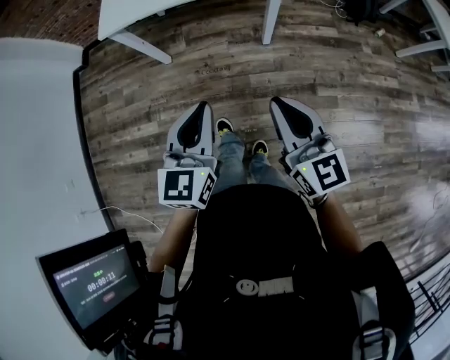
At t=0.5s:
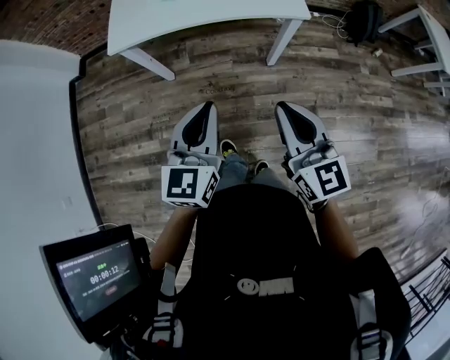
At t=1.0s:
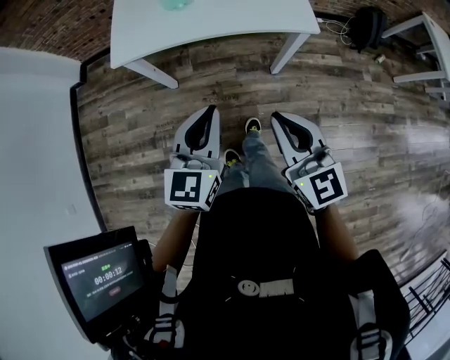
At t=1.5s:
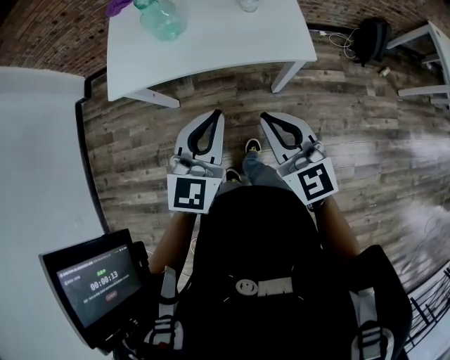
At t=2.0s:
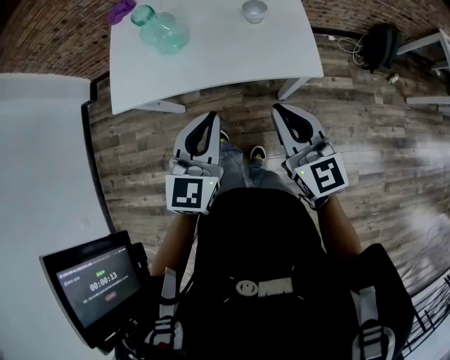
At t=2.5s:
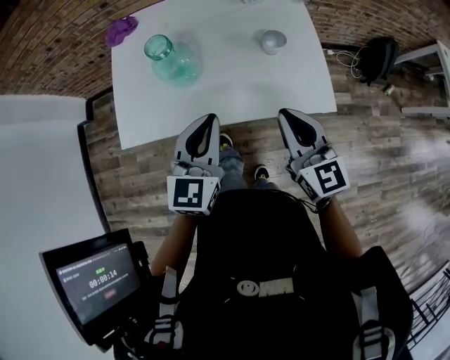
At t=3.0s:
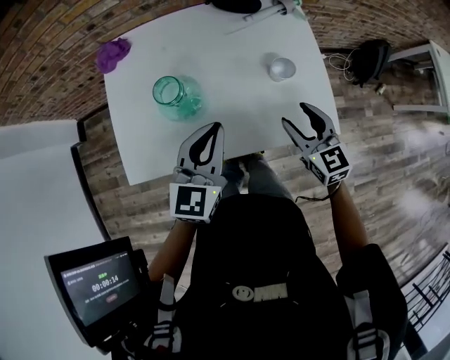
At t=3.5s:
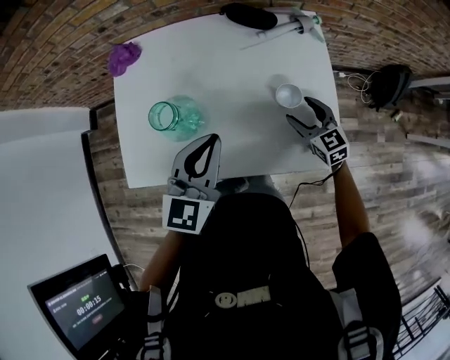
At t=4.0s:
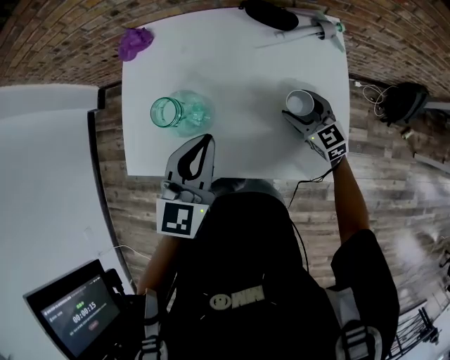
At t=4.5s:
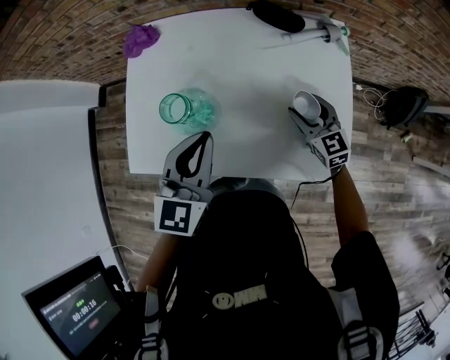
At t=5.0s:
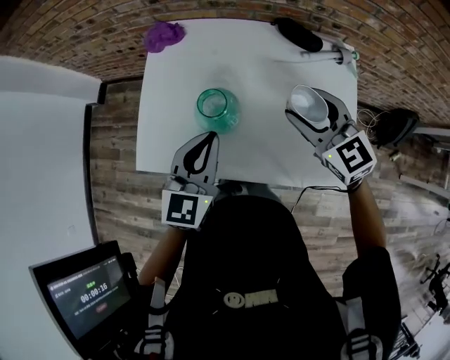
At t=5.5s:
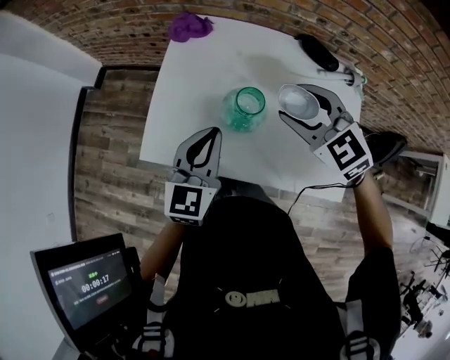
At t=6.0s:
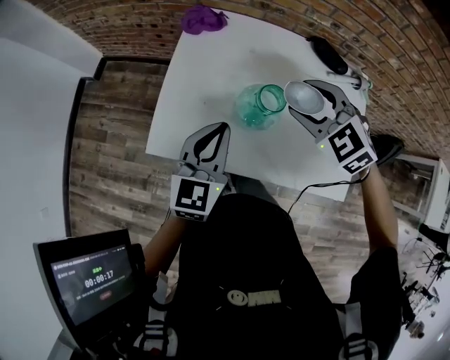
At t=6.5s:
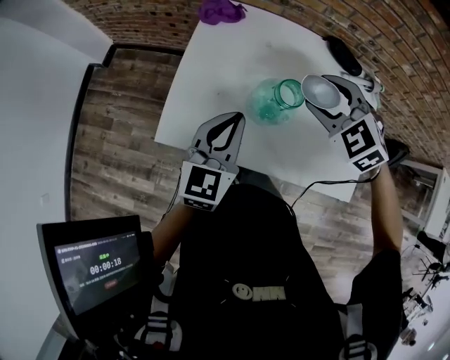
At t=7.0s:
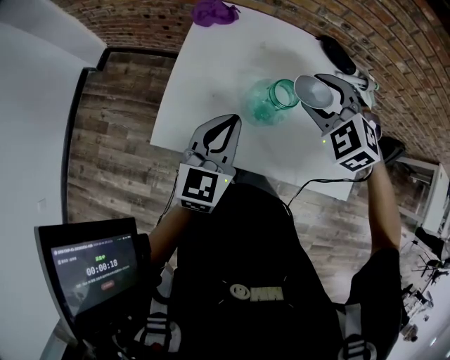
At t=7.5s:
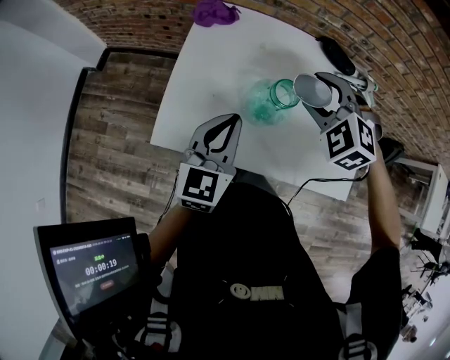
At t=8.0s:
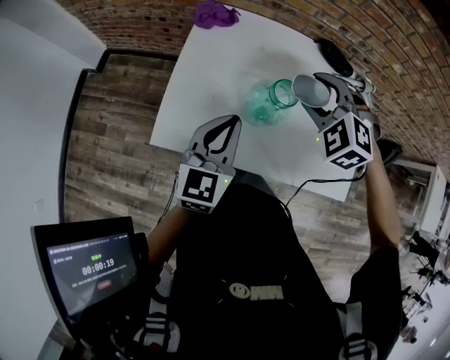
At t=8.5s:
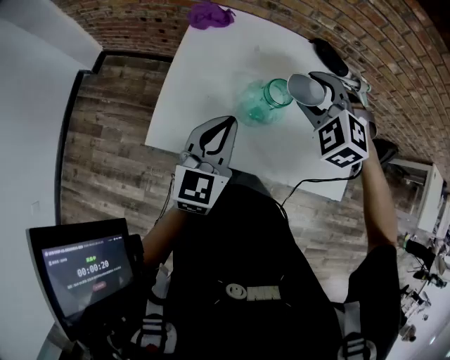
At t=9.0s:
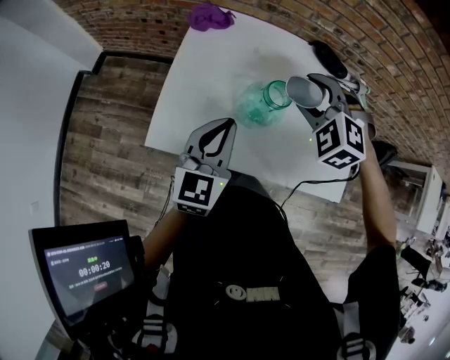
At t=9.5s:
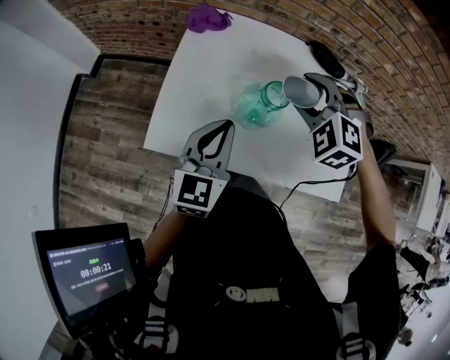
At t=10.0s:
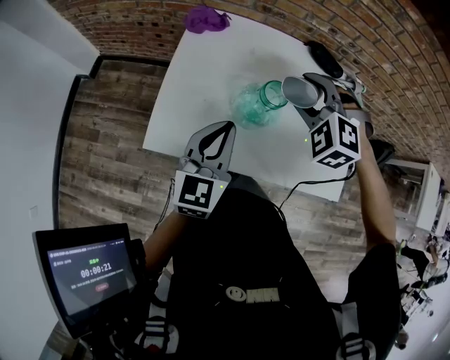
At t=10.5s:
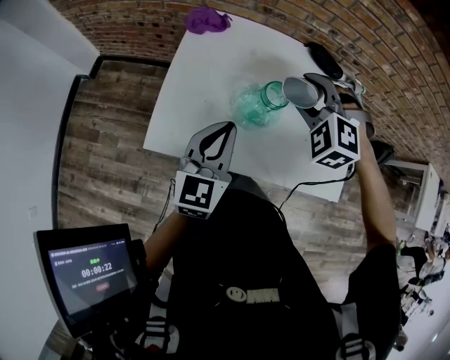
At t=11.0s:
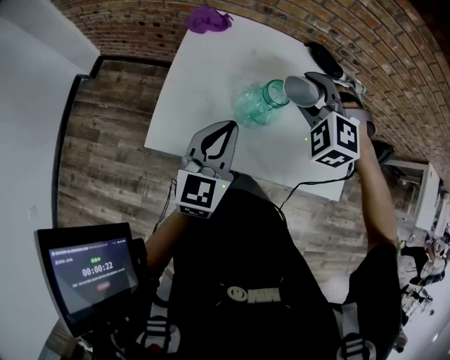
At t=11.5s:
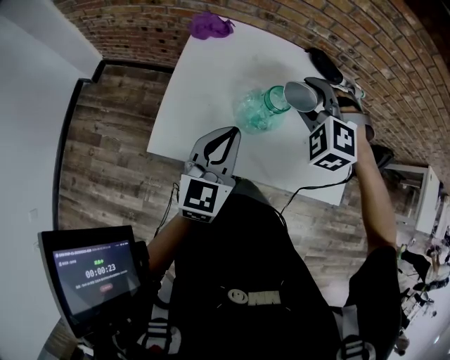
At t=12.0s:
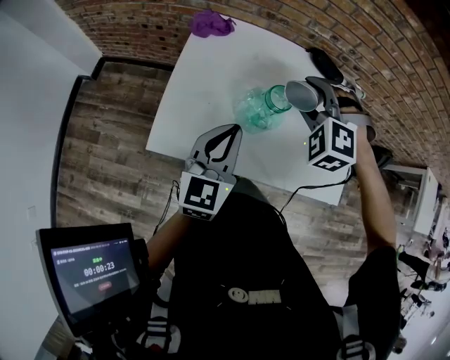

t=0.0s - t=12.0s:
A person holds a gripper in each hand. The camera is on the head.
t=0.0s - t=2.0s: The two grippers go about 35 cm forward.
t=2.0s - t=4.0s: The left gripper goes roughly 30 cm forward, while the right gripper travels forward and downward by about 40 cm, turns by about 30 degrees, and opens up.
t=4.0s - t=6.0s: The right gripper heads to the left and upward, covering roughly 30 cm, and turns by approximately 40 degrees, while the left gripper is displaced to the left by approximately 15 cm.
t=6.0s - t=8.0s: The right gripper rotates about 20 degrees.
t=8.0s - t=12.0s: The grippers make only small movements.

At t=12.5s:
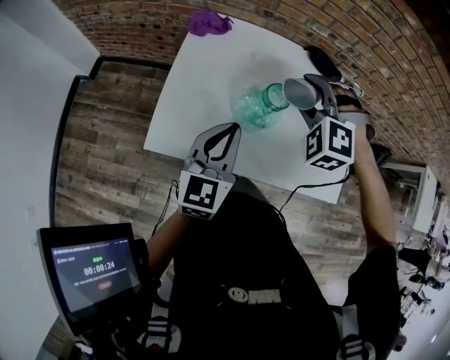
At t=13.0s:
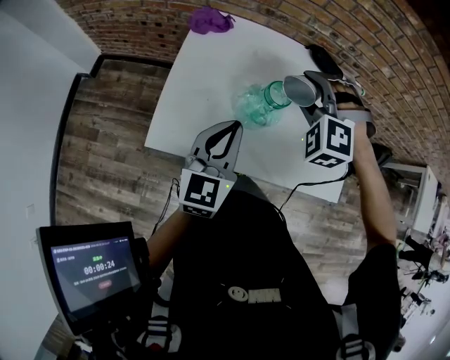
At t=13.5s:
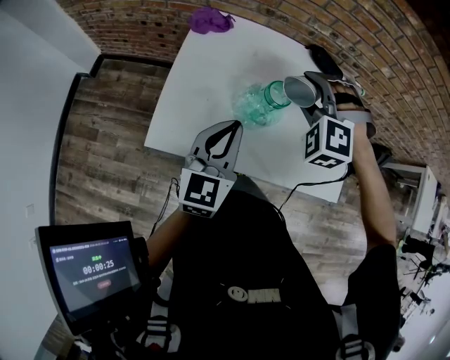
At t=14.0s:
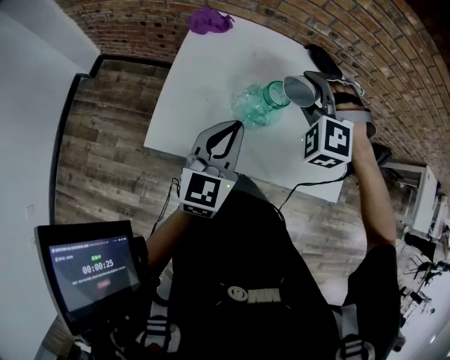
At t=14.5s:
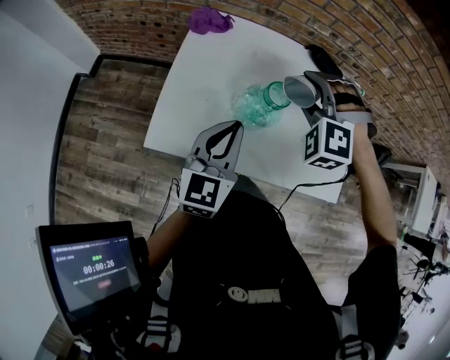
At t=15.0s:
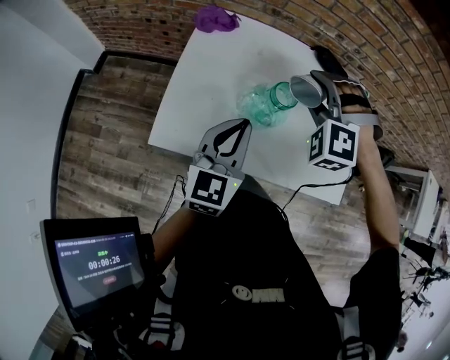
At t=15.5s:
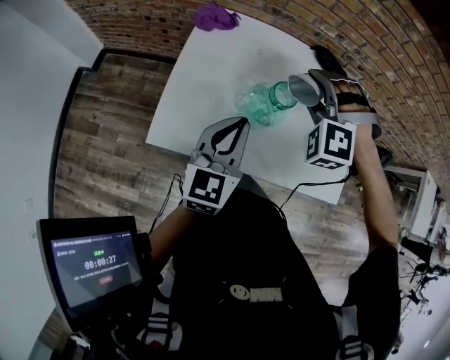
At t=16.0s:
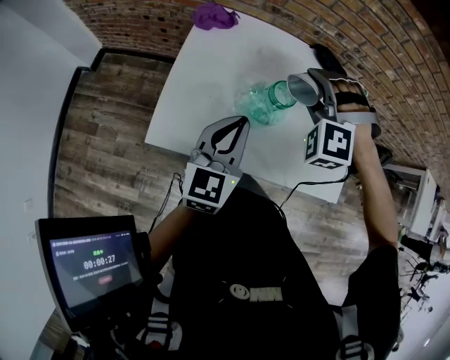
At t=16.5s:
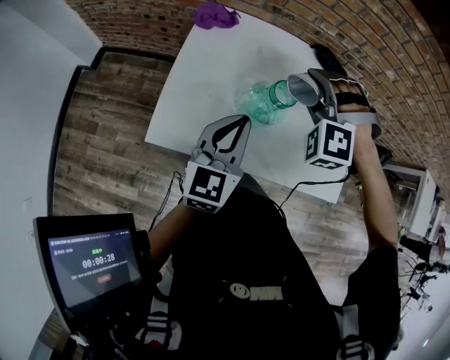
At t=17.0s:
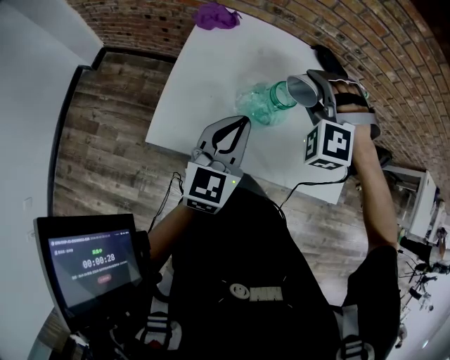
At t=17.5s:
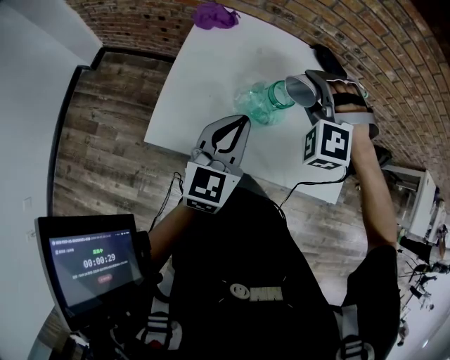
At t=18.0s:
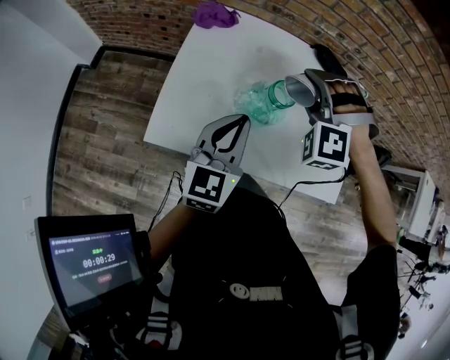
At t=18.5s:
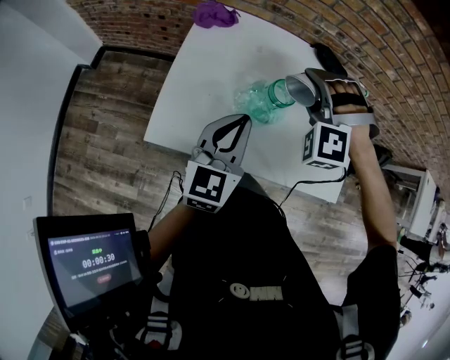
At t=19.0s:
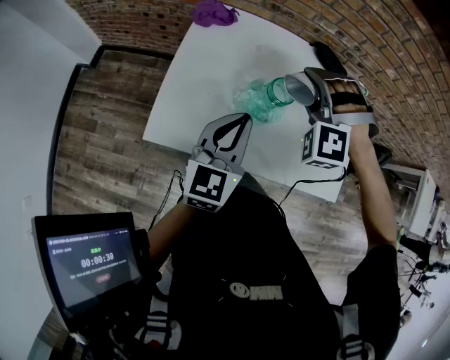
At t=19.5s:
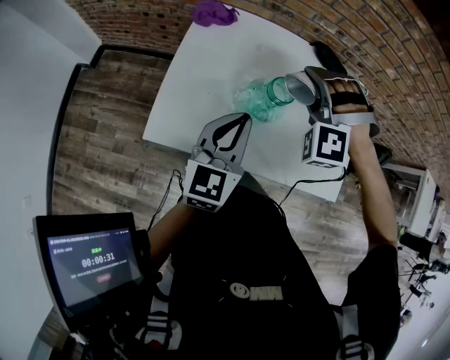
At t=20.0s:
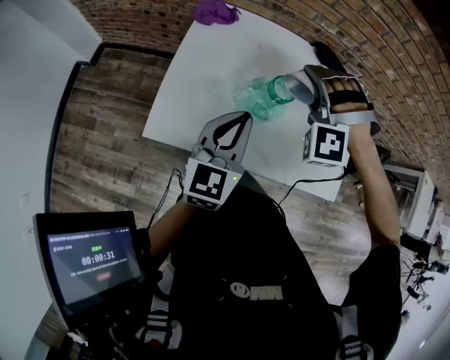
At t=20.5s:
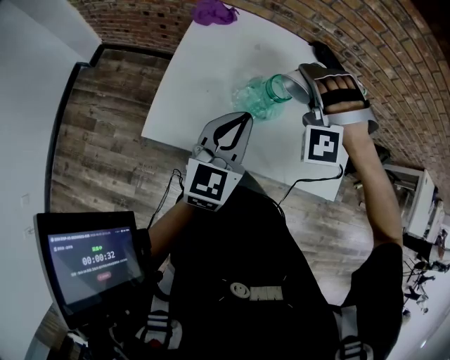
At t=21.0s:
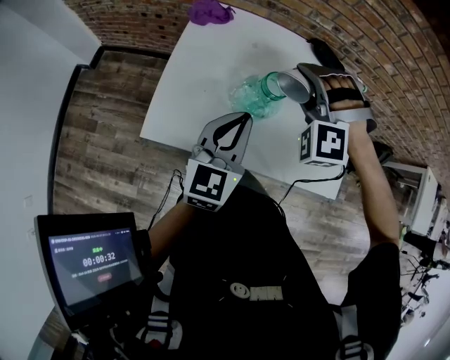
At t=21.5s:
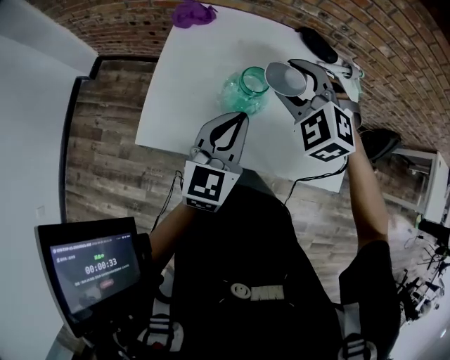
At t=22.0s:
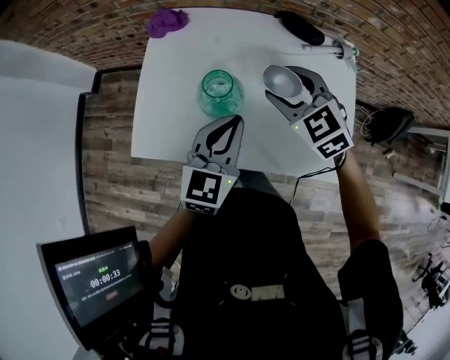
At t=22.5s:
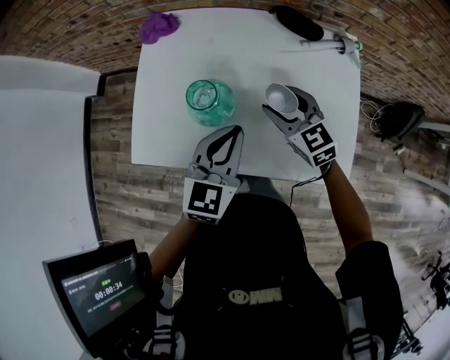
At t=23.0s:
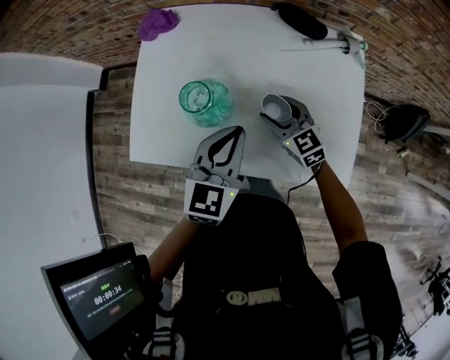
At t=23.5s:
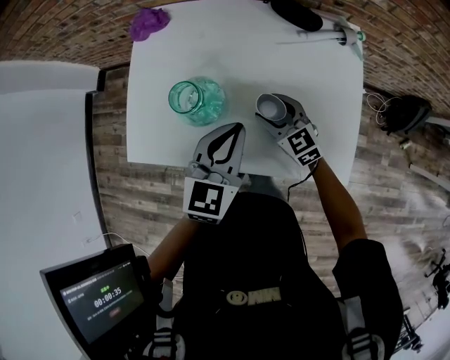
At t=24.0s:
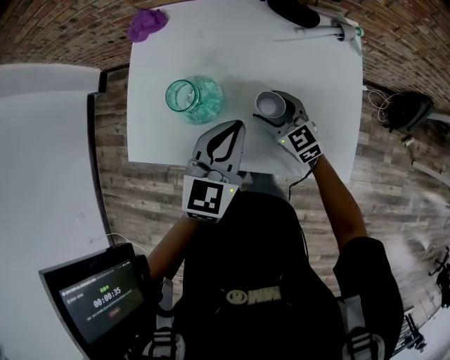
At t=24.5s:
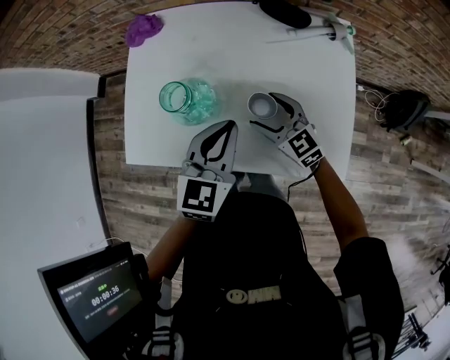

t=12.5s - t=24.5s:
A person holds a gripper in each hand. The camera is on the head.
t=12.5s - t=16.5s: The grippers move only a little.
t=16.5s - t=18.5s: Neither gripper changes place.
t=18.5s - t=20.5s: The grippers make only small movements.
t=20.5s - t=22.5s: The right gripper shifts roughly 15 cm to the right and downward, and twists some 90 degrees clockwise, seen from behind. Meanwhile the left gripper is displaced to the right by some 15 cm.
t=22.5s - t=24.5s: The right gripper heads downward, covering roughly 5 cm.

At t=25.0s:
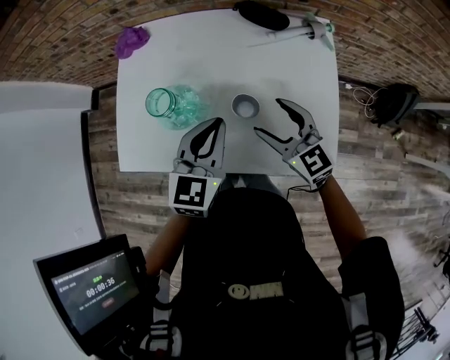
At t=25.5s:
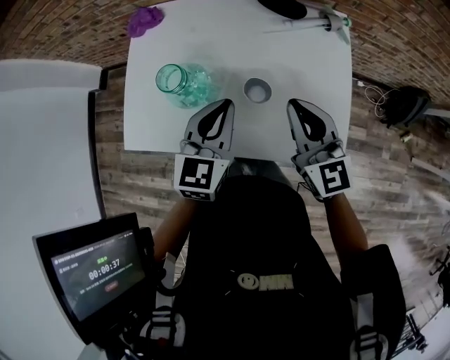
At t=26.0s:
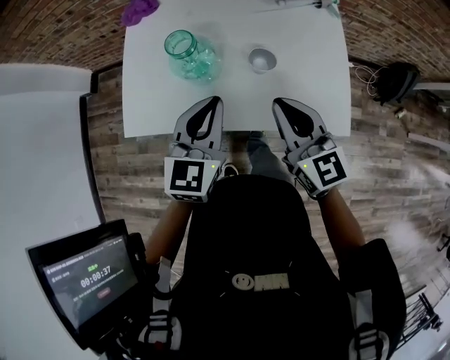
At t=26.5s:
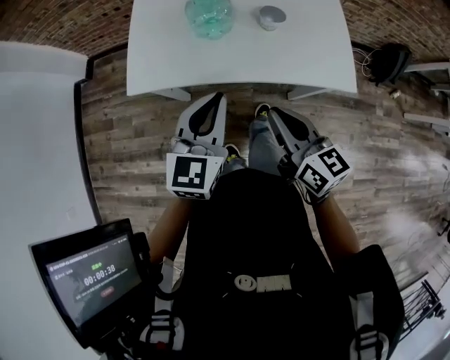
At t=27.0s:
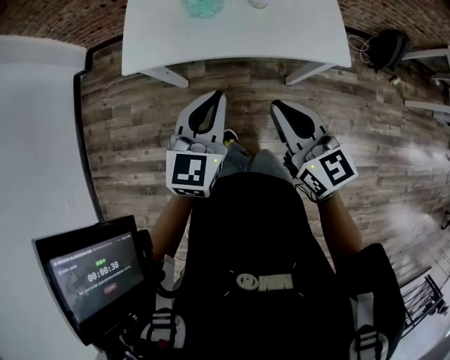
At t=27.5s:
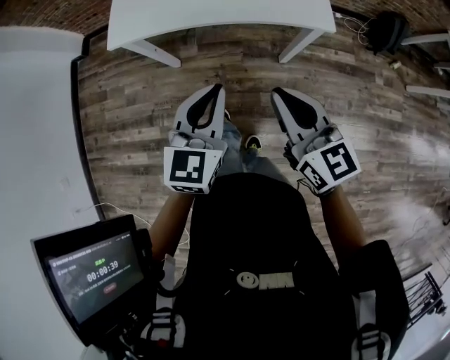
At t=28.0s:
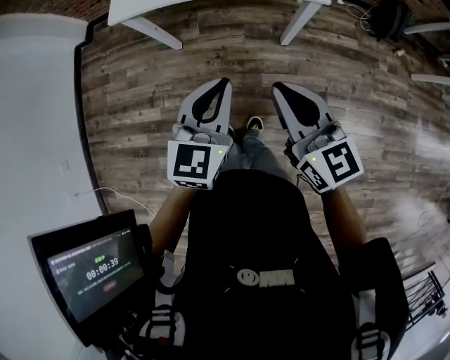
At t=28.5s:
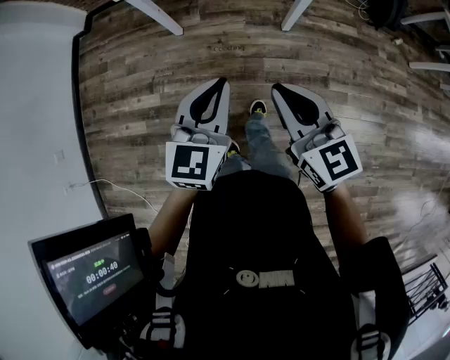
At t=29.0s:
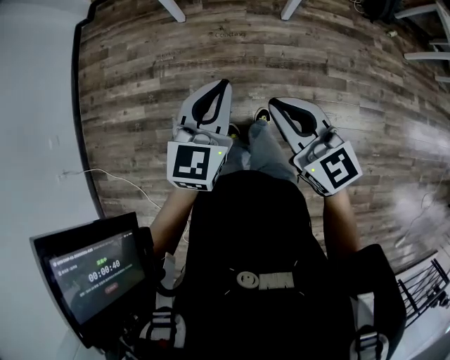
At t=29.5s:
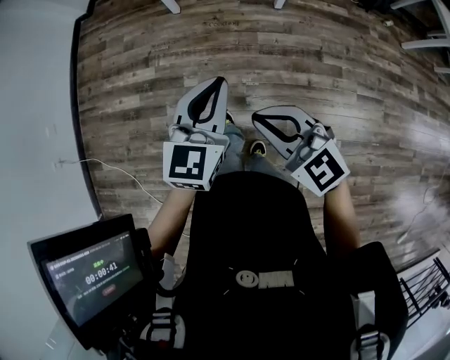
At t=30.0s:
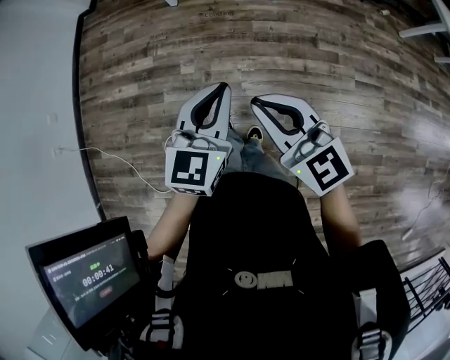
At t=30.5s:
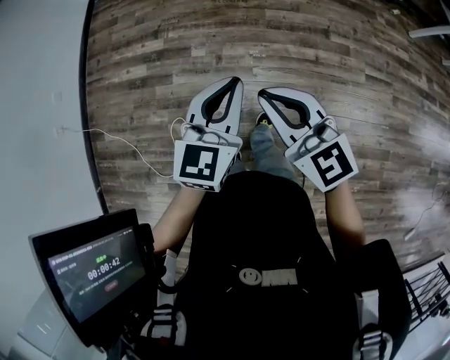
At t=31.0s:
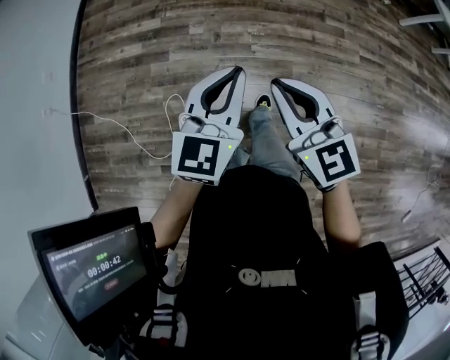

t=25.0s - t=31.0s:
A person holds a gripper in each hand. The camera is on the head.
t=25.0s - t=27.0s: The left gripper moves backward and to the left, some 30 cm. The right gripper goes about 35 cm backward, turns by roughly 20 degrees, and closes.
t=27.0s - t=29.0s: Both grippers are carried backward, some 40 cm.
t=29.0s - t=31.0s: Both grippers are carried backward, some 40 cm.
